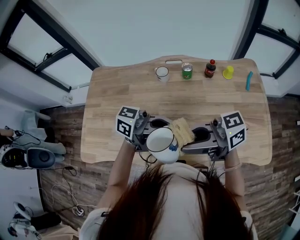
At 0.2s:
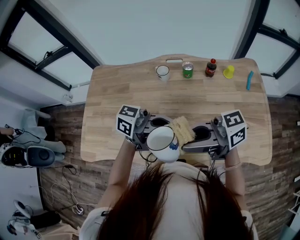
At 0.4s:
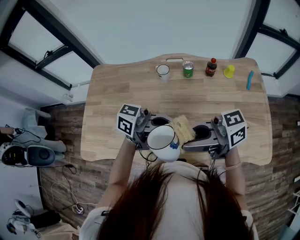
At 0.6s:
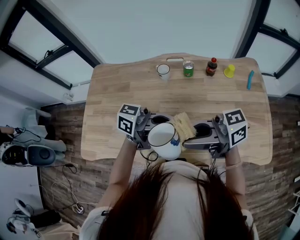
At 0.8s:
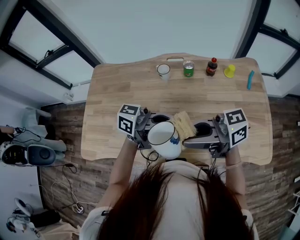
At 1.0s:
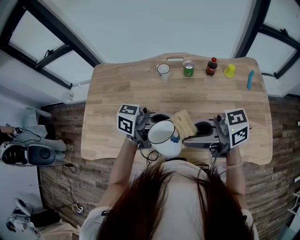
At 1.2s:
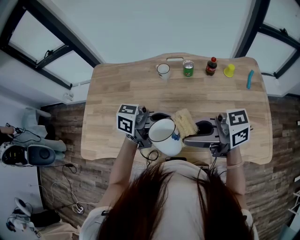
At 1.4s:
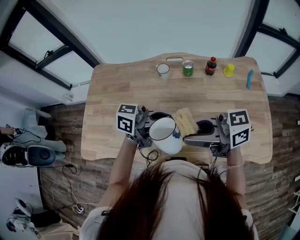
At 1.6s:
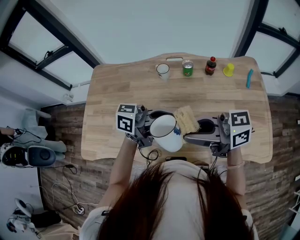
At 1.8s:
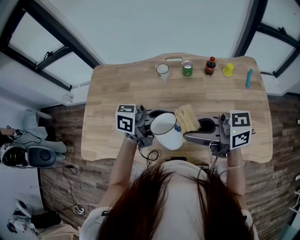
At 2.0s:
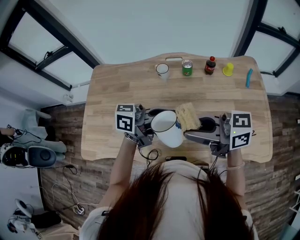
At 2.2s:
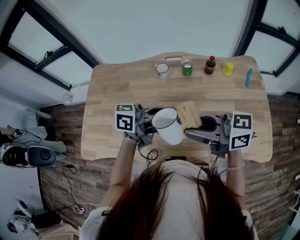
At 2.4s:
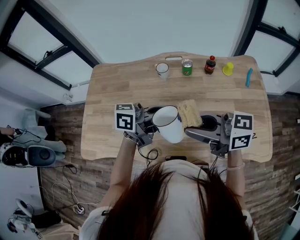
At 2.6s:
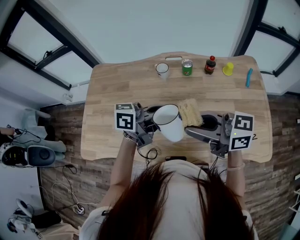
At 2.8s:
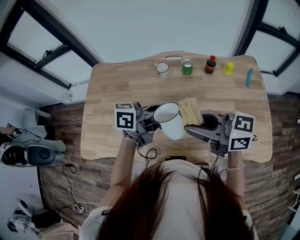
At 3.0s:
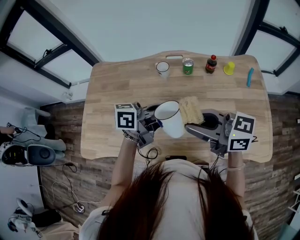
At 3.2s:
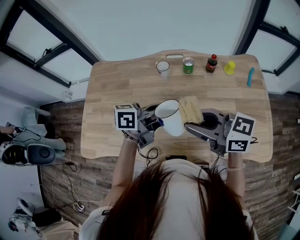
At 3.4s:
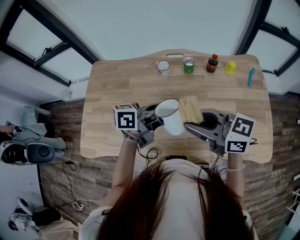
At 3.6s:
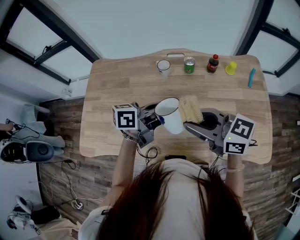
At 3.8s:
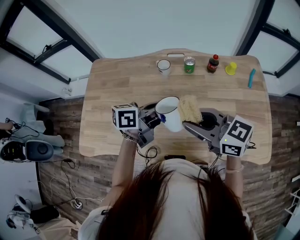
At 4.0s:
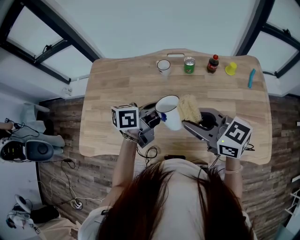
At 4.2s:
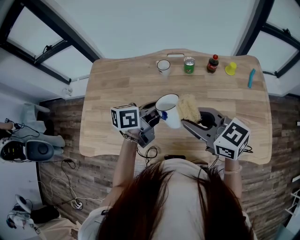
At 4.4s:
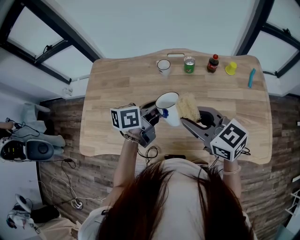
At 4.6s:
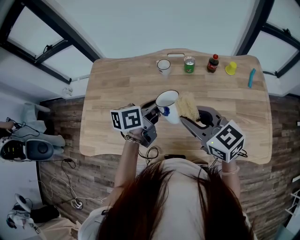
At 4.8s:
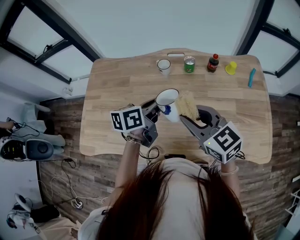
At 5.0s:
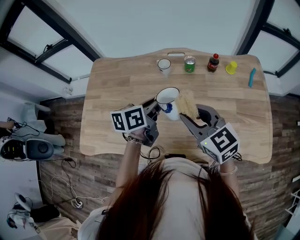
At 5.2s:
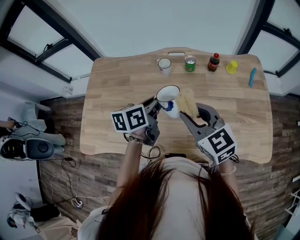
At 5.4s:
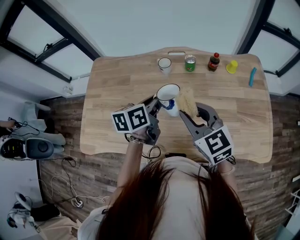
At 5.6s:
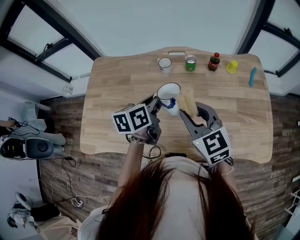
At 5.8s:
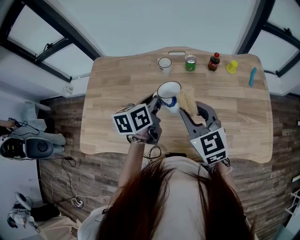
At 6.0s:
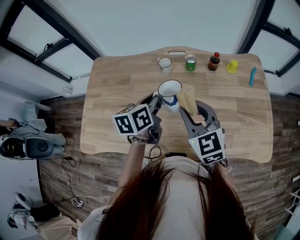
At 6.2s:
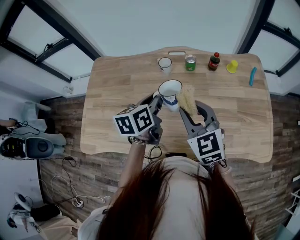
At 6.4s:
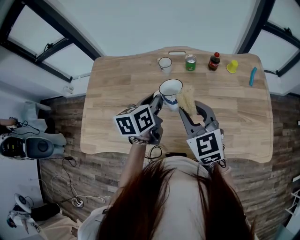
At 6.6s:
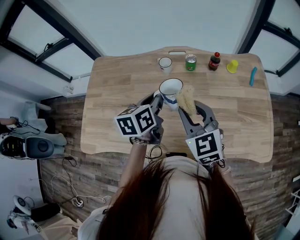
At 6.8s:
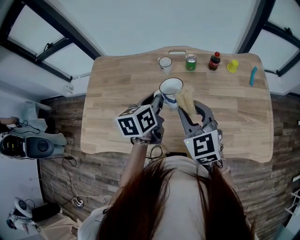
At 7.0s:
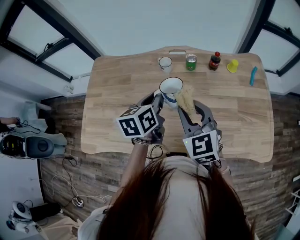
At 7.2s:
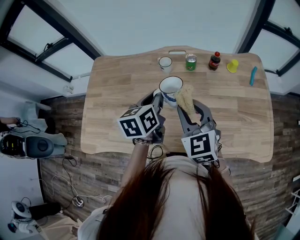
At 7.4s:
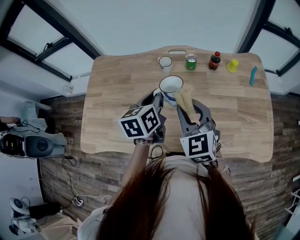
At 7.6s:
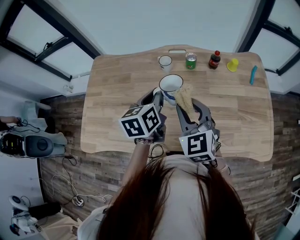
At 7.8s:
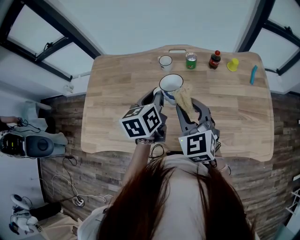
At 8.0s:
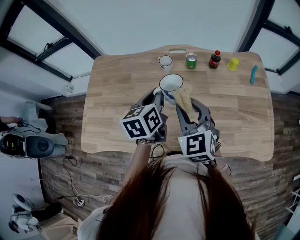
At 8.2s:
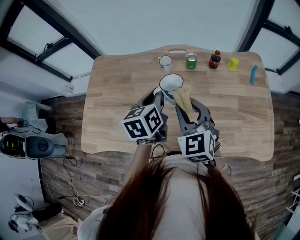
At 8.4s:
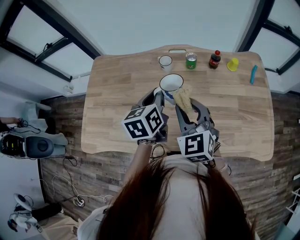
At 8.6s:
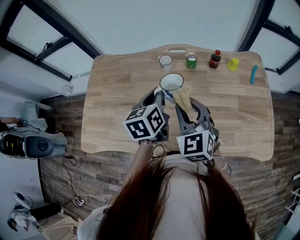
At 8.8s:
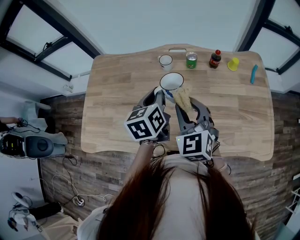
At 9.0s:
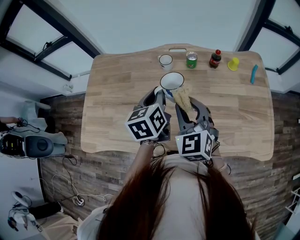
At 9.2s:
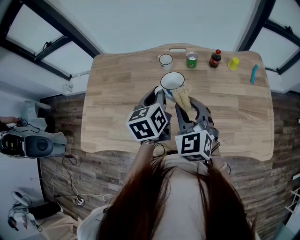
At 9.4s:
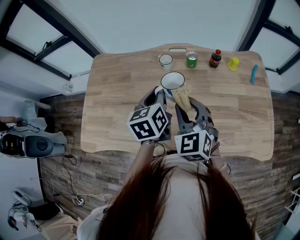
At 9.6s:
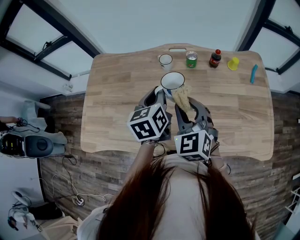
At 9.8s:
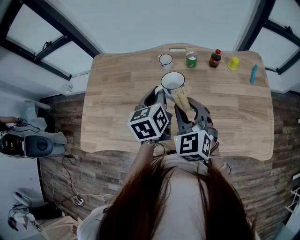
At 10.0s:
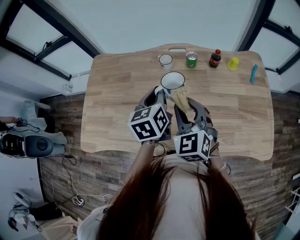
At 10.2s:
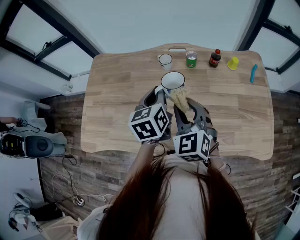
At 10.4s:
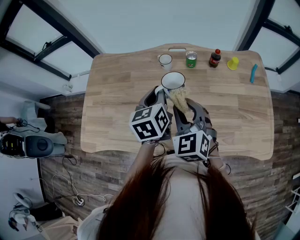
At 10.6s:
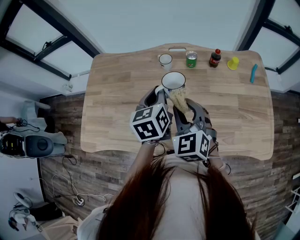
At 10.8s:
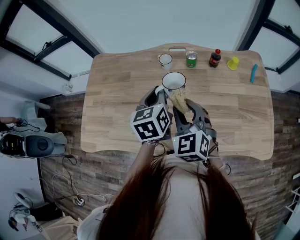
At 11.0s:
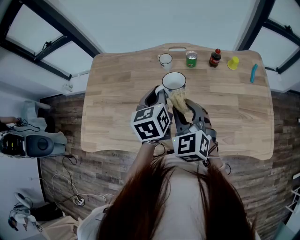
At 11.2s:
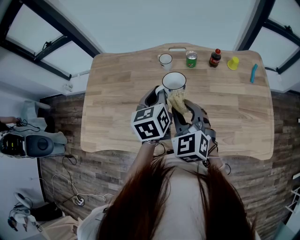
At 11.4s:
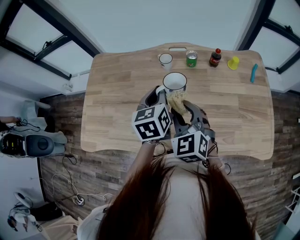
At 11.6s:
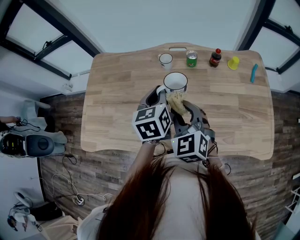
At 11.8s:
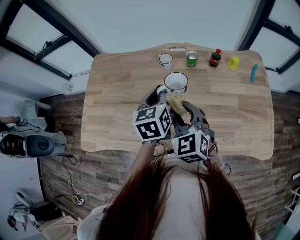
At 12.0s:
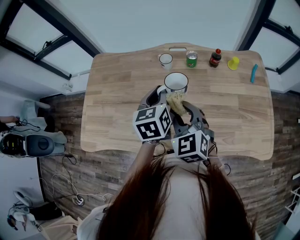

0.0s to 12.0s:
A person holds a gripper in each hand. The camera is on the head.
0.0s to 1.6s: The grippers stay close to where they were, moving slightly.
1.6s to 3.0s: The left gripper swivels about 20 degrees.
3.0s to 4.4s: The right gripper rotates some 20 degrees; the left gripper ends up approximately 5 cm from where it was, and swivels about 20 degrees.
4.4s to 6.0s: The right gripper turns by approximately 30 degrees, while the left gripper rotates roughly 30 degrees.
6.0s to 9.0s: The grippers make only small movements.
9.0s to 10.4s: Neither gripper changes place.
10.4s to 12.0s: The grippers make only small movements.

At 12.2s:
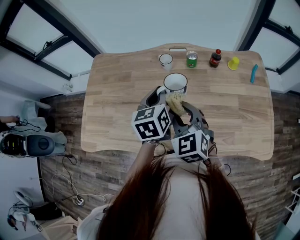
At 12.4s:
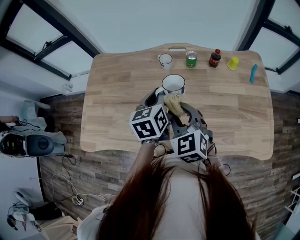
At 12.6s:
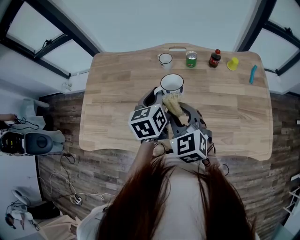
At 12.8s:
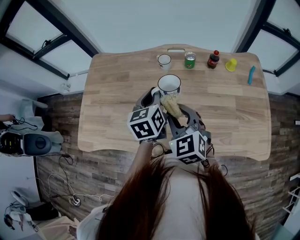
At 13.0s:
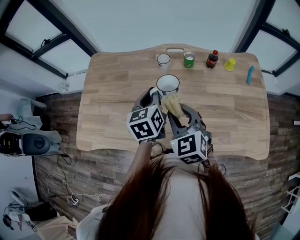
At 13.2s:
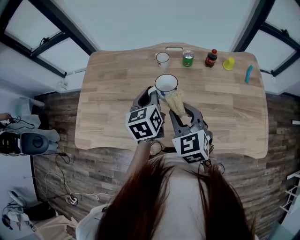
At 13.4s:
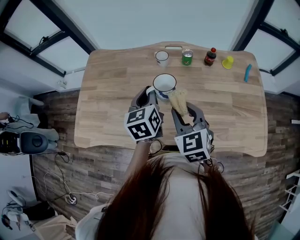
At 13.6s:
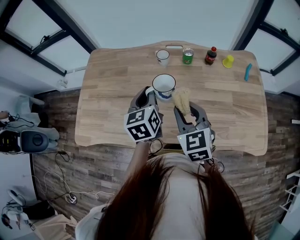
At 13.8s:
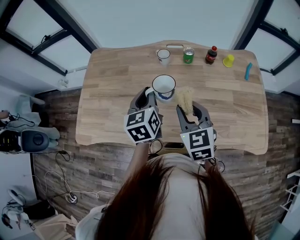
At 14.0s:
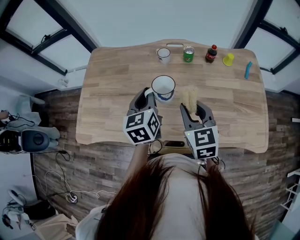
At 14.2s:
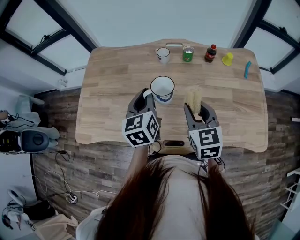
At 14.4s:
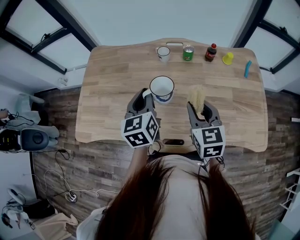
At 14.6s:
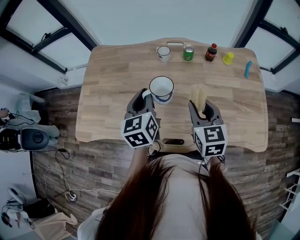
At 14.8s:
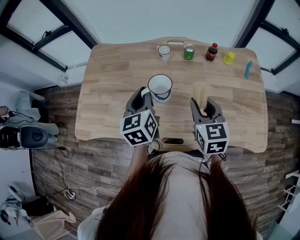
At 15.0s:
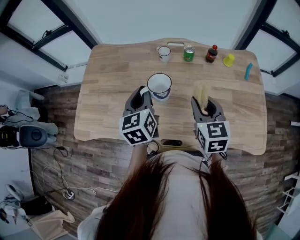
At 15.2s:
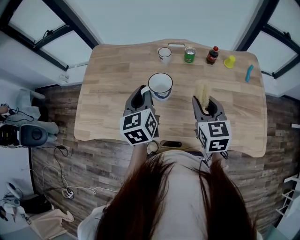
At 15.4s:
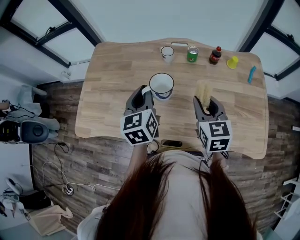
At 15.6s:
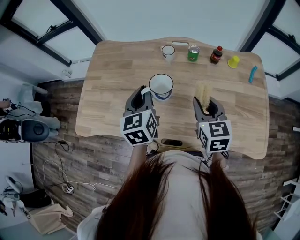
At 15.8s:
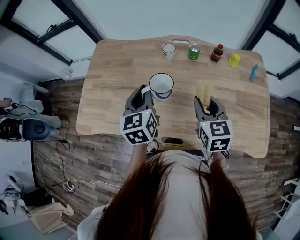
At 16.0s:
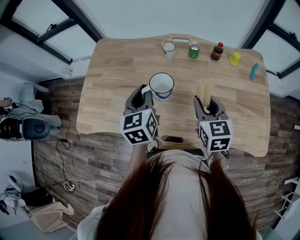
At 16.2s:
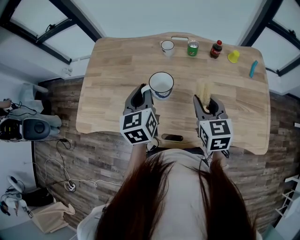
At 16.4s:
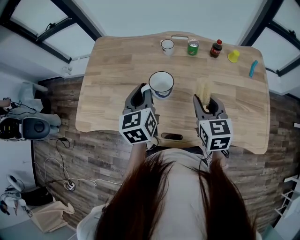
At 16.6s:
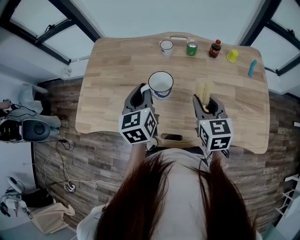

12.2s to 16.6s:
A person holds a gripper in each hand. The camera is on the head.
12.2s to 13.6s: The left gripper ends up roughly 5 cm from where it was.
13.6s to 15.2s: The right gripper heads to the right, covering some 5 cm.
15.2s to 16.6s: The grippers move only a little.

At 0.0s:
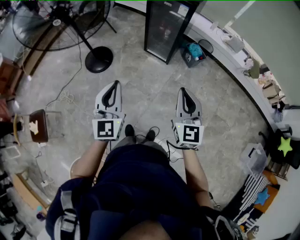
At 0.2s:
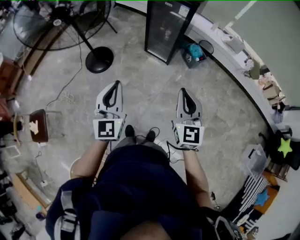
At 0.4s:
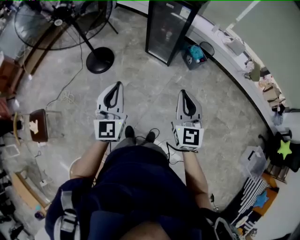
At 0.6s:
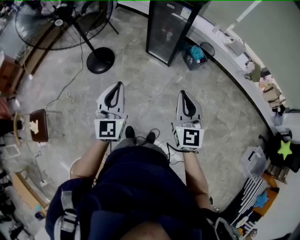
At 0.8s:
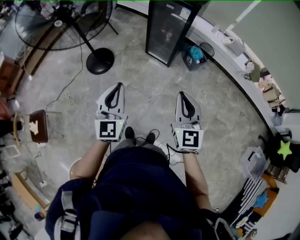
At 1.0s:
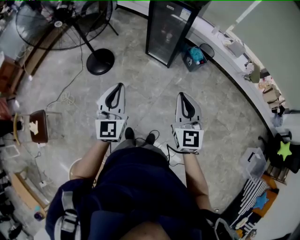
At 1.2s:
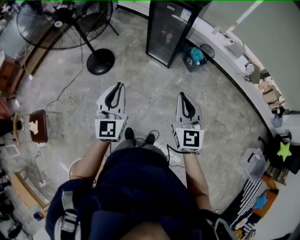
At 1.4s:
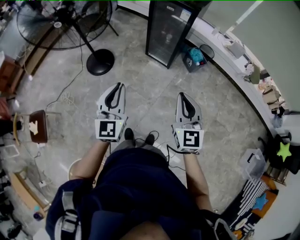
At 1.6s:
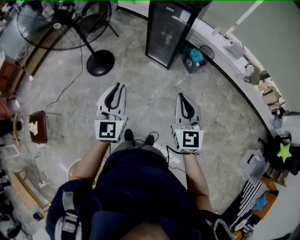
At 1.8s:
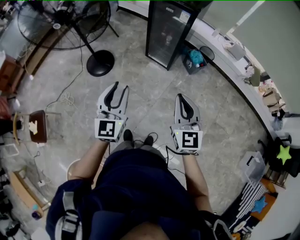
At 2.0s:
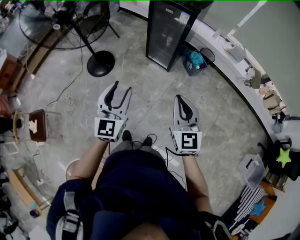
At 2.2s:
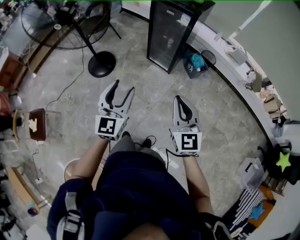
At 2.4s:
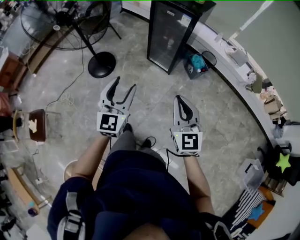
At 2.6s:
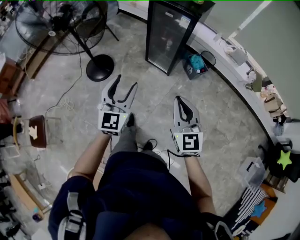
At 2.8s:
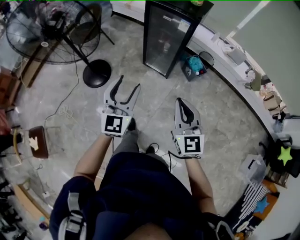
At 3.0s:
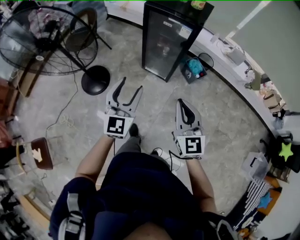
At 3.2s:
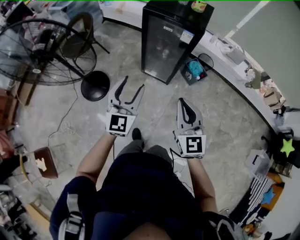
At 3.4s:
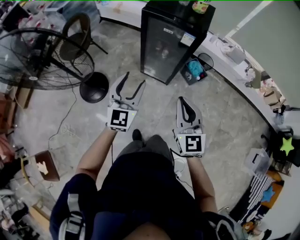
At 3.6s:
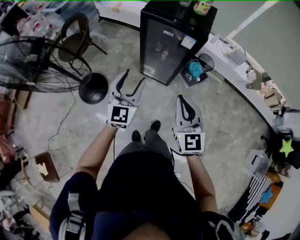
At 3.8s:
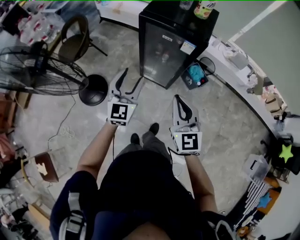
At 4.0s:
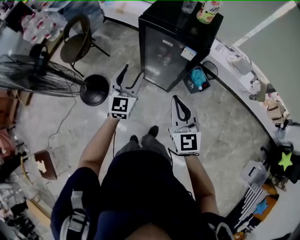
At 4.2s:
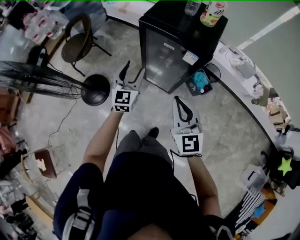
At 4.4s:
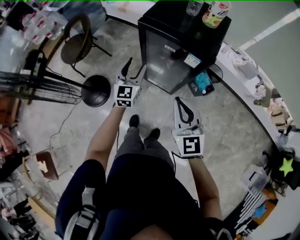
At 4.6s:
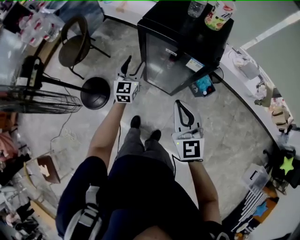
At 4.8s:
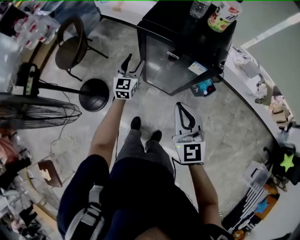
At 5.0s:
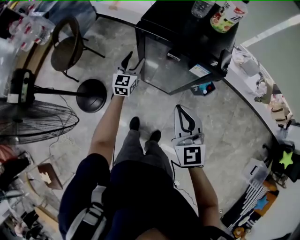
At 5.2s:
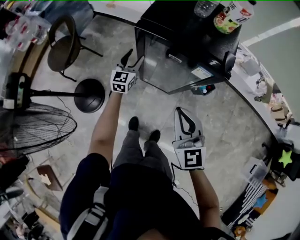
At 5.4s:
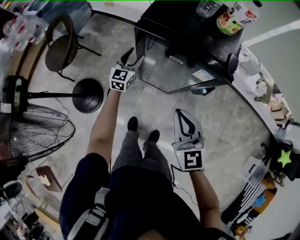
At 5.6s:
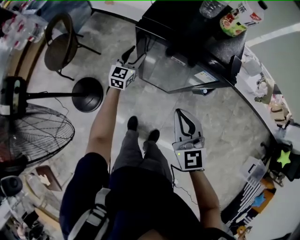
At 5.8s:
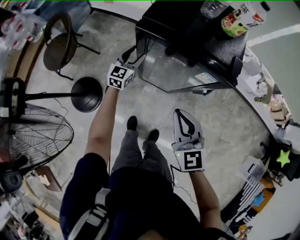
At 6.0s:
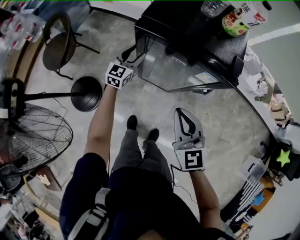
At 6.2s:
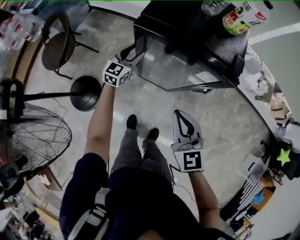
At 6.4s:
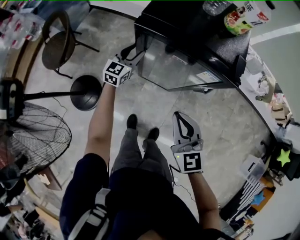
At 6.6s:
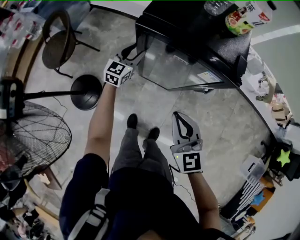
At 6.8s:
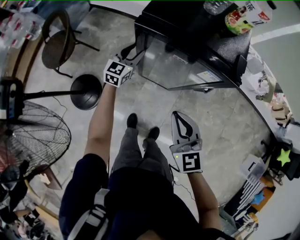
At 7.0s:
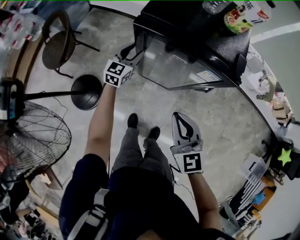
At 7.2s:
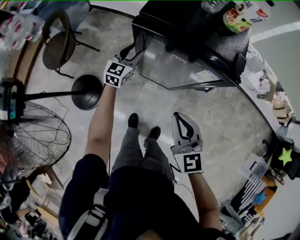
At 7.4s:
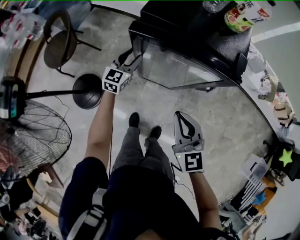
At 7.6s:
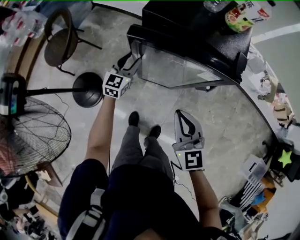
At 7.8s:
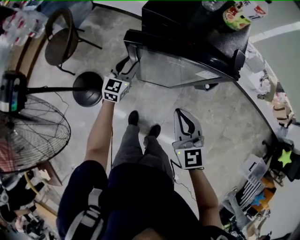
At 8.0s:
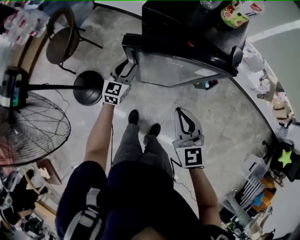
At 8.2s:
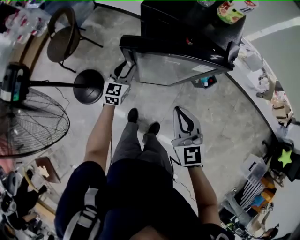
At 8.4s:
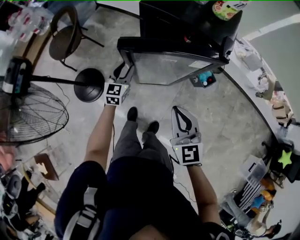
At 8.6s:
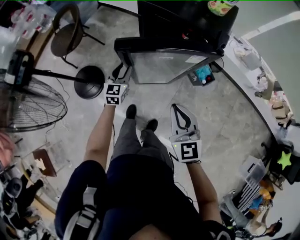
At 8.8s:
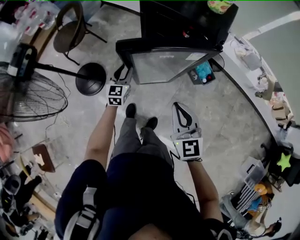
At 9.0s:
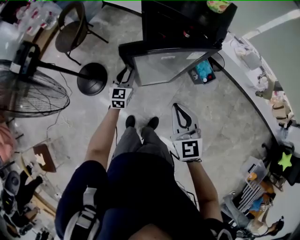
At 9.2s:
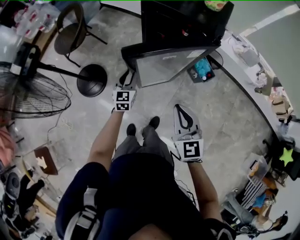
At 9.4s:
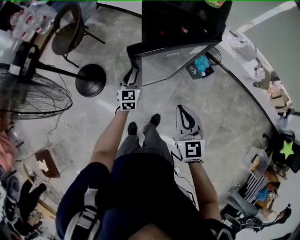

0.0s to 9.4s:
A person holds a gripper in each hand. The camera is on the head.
0.0s to 1.6s: The grippers stay close to where they were, moving slightly.
1.6s to 3.2s: The two grippers go approximately 30 cm forward. The left gripper opens.
3.2s to 4.8s: The left gripper shifts approximately 50 cm forward and downward. Meanwhile the right gripper goes some 30 cm forward.
4.8s to 6.2s: The left gripper moves forward and downward, some 15 cm, and swivels about 20 degrees. Meanwhile the right gripper heads downward and forward, covering roughly 10 cm.
6.2s to 7.8s: The left gripper is displaced backward by approximately 10 cm.
7.8s to 9.4s: The two grippers go some 20 cm backward.
